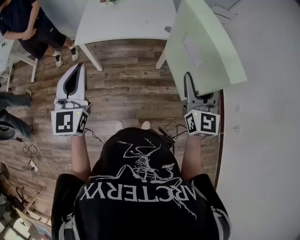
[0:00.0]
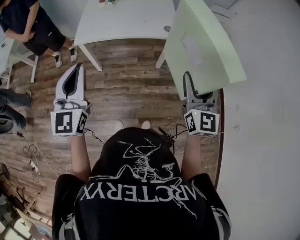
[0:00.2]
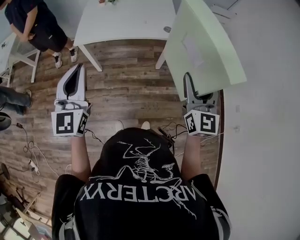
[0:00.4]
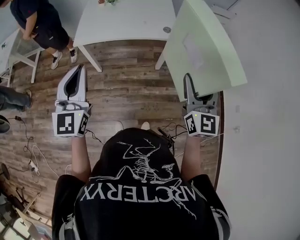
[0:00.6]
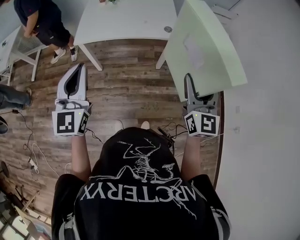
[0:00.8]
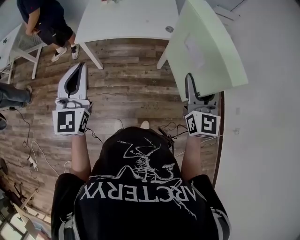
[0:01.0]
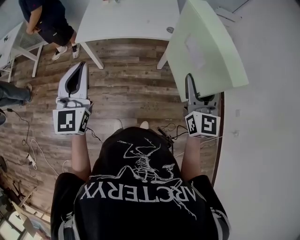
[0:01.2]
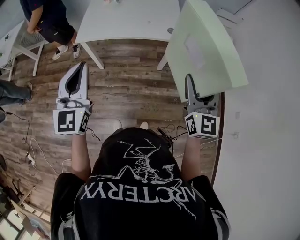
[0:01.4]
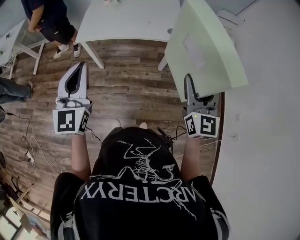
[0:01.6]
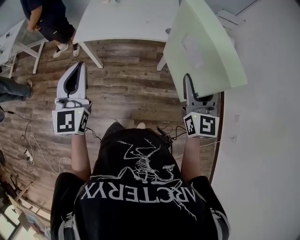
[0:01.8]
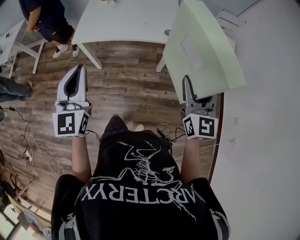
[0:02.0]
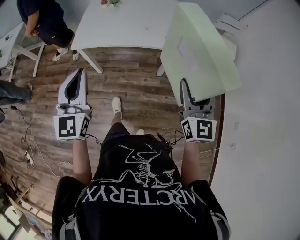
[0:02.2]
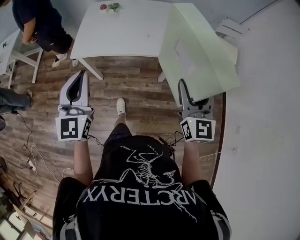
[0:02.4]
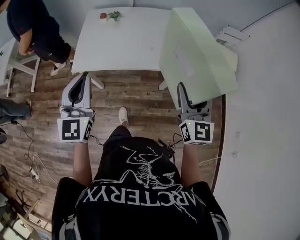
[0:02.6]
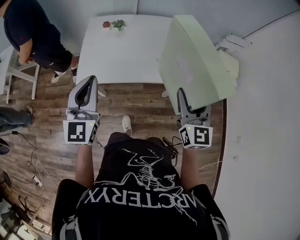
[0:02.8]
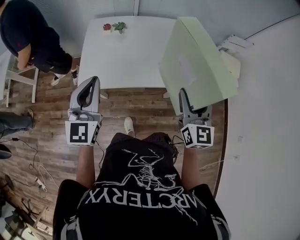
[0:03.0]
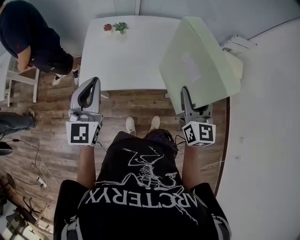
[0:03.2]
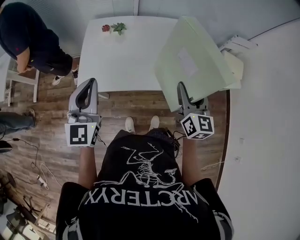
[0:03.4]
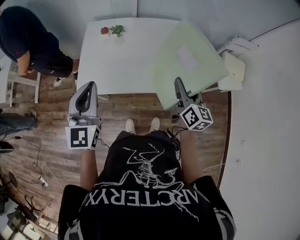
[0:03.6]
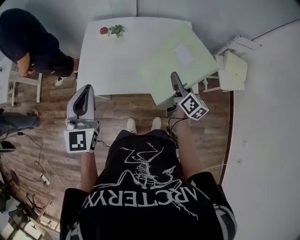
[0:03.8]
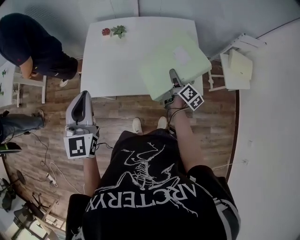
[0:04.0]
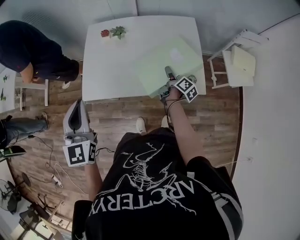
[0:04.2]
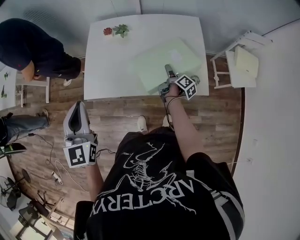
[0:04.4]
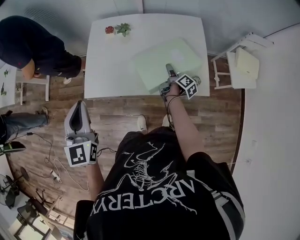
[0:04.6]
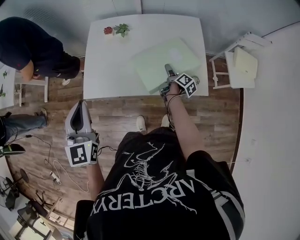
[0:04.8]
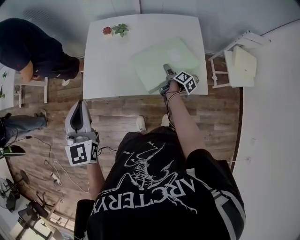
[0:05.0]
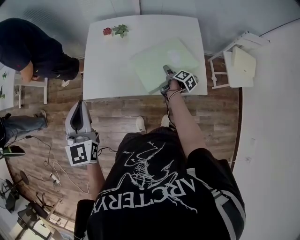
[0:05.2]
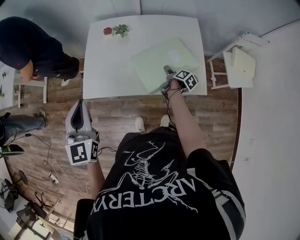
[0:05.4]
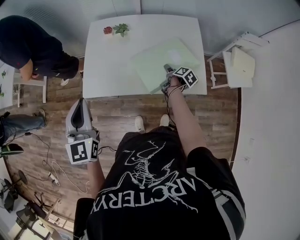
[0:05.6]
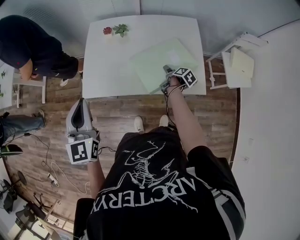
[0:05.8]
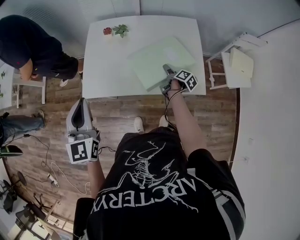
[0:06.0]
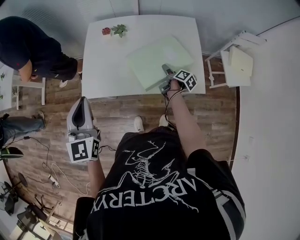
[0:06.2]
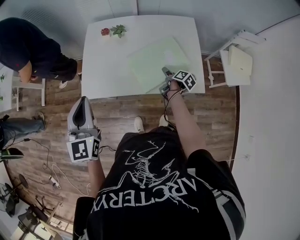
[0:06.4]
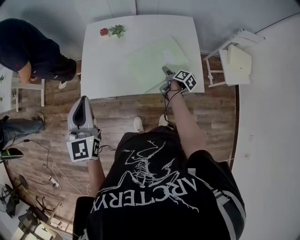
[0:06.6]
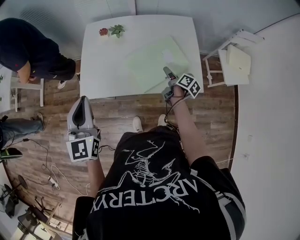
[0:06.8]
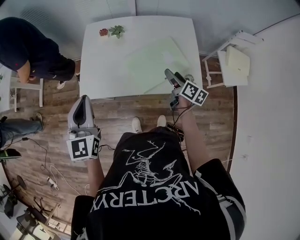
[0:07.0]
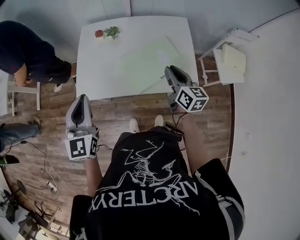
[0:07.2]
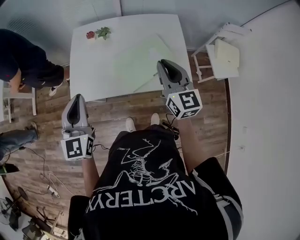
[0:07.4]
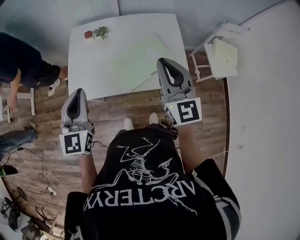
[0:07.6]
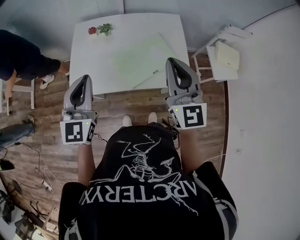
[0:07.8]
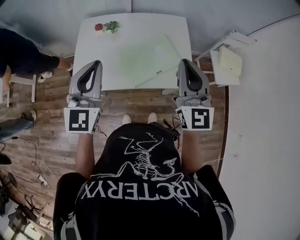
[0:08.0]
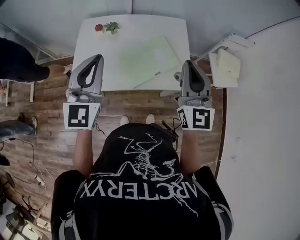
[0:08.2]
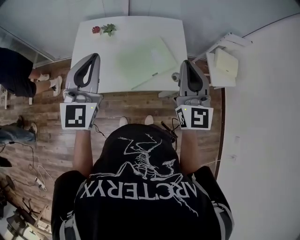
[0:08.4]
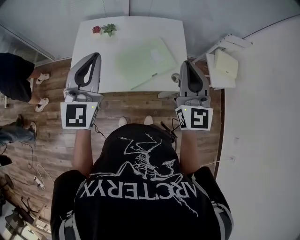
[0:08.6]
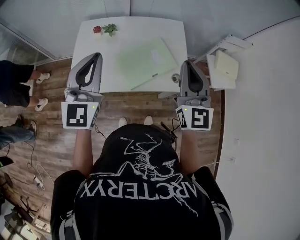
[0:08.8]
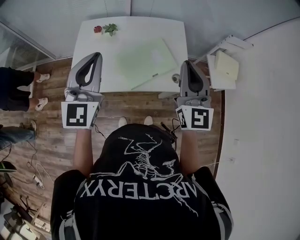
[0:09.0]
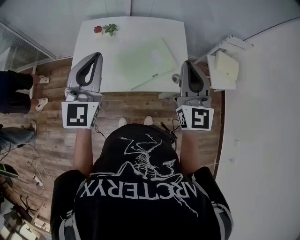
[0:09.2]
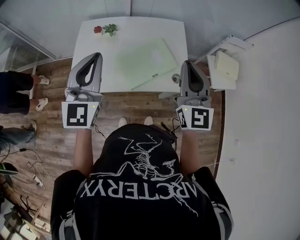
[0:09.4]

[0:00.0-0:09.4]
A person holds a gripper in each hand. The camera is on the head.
0:00.0 to 0:01.6: The right gripper ends up some 5 cm from where it was.
0:01.6 to 0:03.2: Both grippers move forward, roughly 30 cm.
0:03.2 to 0:04.8: The right gripper moves downward and forward, some 40 cm, and rolls clockwise, seen from behind, by approximately 70 degrees.
0:06.2 to 0:07.8: The right gripper shifts roughly 40 cm upward, rotates around the line of its fingers by approximately 80 degrees, counterclockwise from behind, and closes. Meanwhile the left gripper moves to the right, some 10 cm.
0:07.8 to 0:09.4: The left gripper moves upward, some 5 cm.

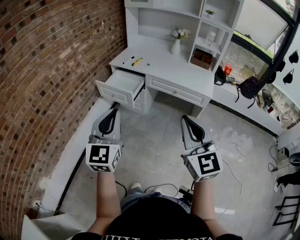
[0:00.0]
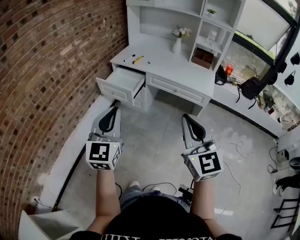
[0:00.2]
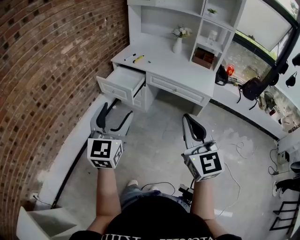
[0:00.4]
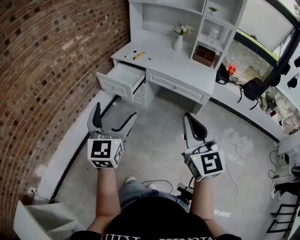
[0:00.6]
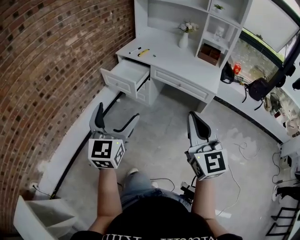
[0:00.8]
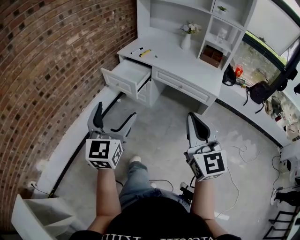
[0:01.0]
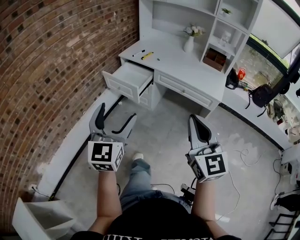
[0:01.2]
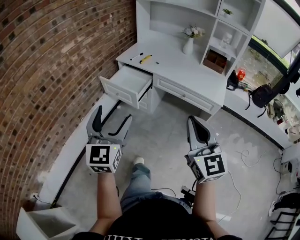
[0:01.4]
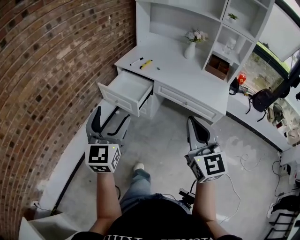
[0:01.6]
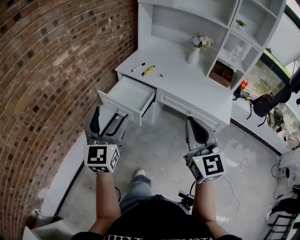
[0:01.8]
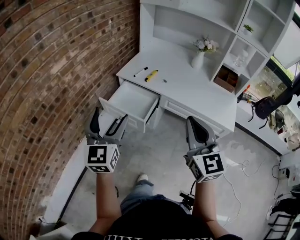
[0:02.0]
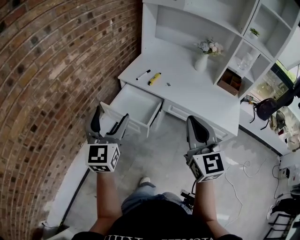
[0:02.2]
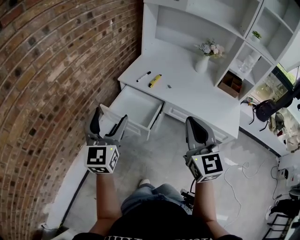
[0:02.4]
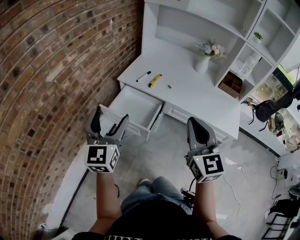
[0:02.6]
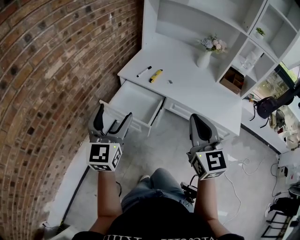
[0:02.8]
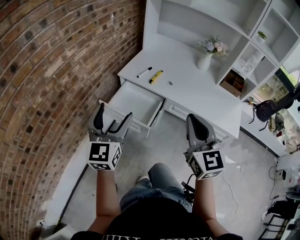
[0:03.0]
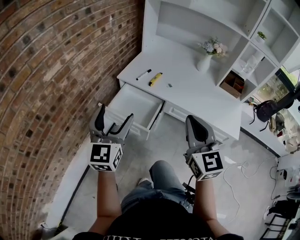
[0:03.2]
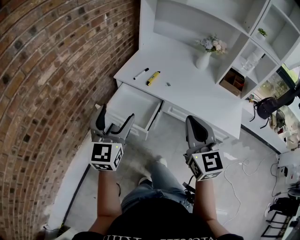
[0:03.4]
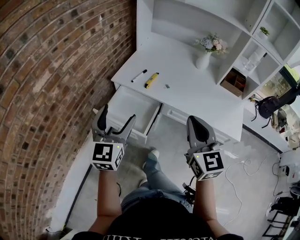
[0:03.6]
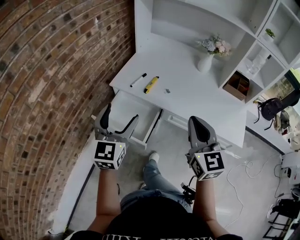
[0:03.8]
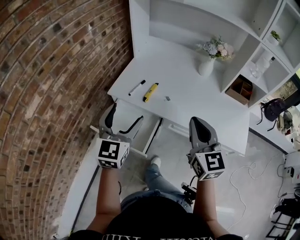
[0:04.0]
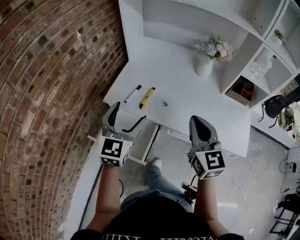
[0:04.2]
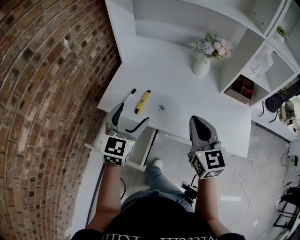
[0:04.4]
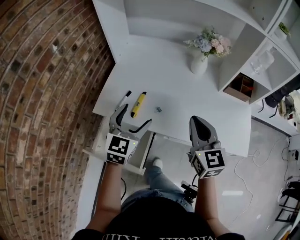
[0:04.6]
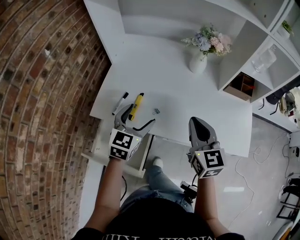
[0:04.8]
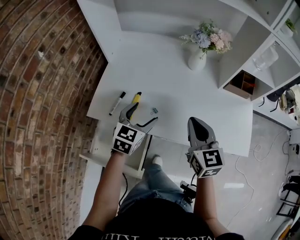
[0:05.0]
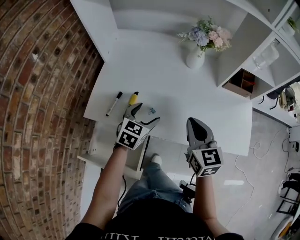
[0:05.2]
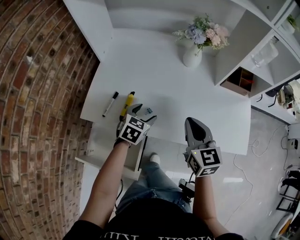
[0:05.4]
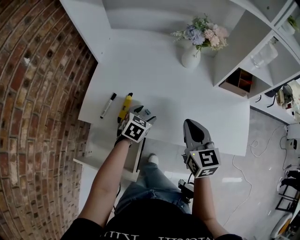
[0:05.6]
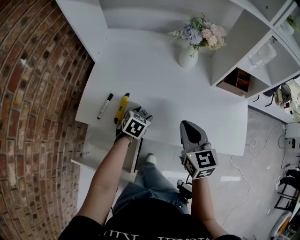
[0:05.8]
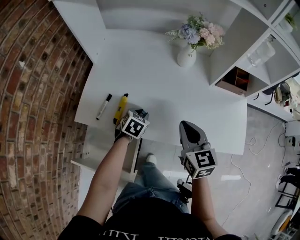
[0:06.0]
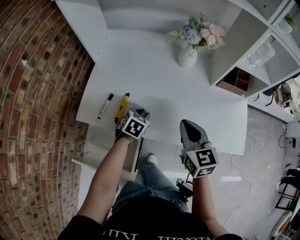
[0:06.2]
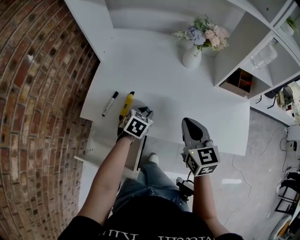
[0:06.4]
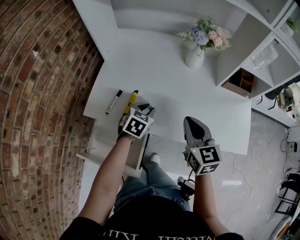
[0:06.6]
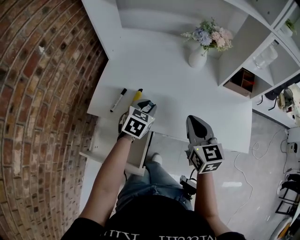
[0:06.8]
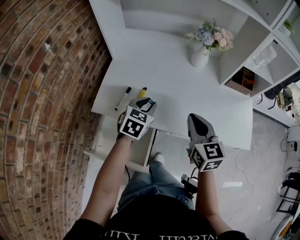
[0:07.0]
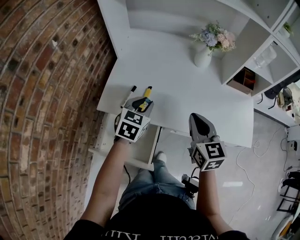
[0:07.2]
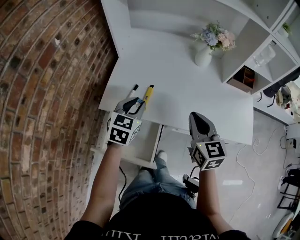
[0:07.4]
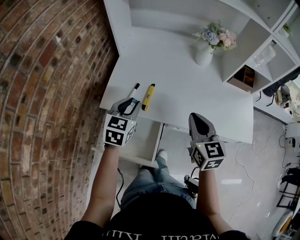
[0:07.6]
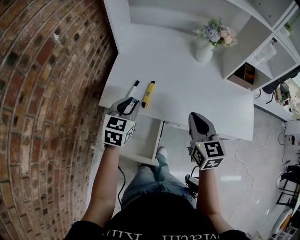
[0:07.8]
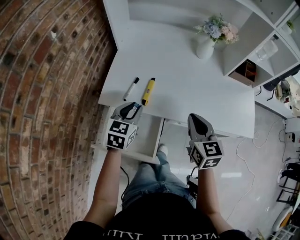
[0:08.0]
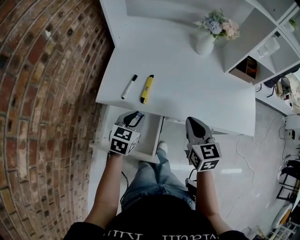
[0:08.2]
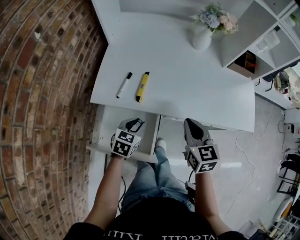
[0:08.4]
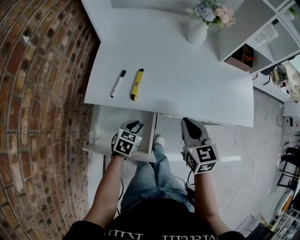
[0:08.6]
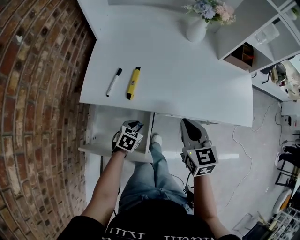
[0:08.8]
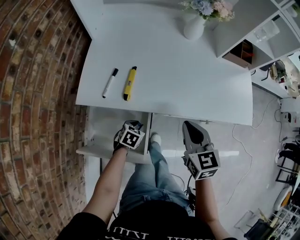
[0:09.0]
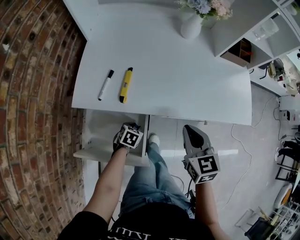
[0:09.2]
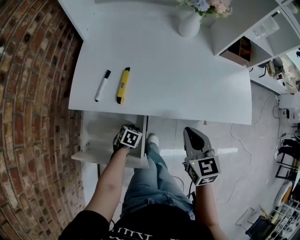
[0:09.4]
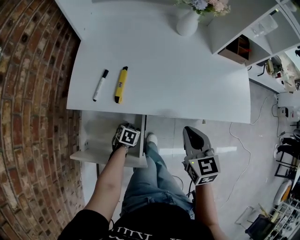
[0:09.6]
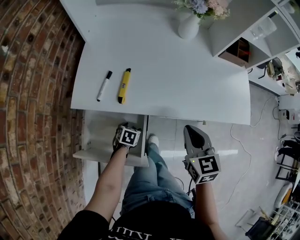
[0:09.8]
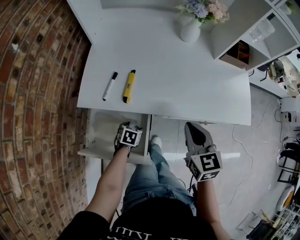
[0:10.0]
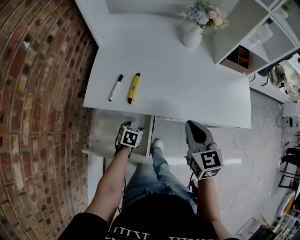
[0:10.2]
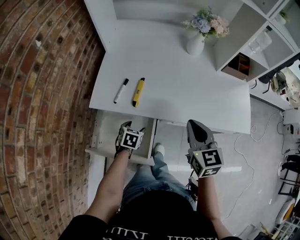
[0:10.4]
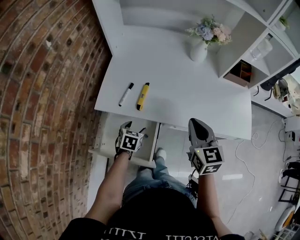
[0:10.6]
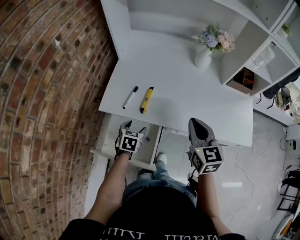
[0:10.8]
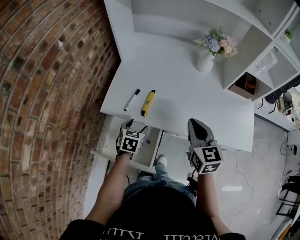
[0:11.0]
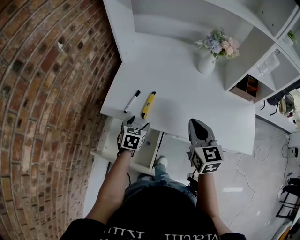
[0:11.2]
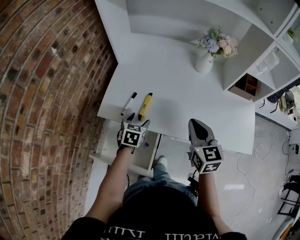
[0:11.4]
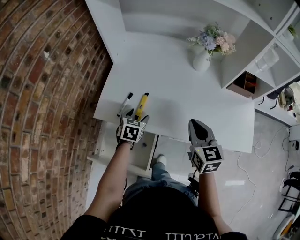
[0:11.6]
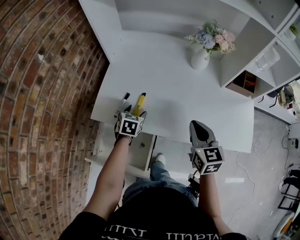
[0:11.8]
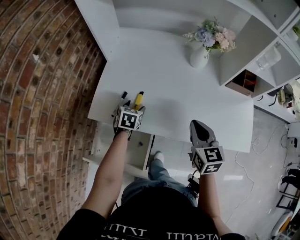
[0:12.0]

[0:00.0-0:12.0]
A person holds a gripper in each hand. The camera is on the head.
0:00.0 to 0:01.6: Both grippers move forward, about 15 cm. The left gripper opens its fingers.
0:01.6 to 0:03.0: The two grippers go roughly 25 cm forward.
0:03.0 to 0:04.4: The left gripper travels forward and to the right by some 35 cm, and swivels roughly 20 degrees. Meanwhile the right gripper heads forward, covering roughly 25 cm.
0:04.4 to 0:06.0: The right gripper heads downward and forward, covering approximately 15 cm; the left gripper heads downward and forward, covering roughly 30 cm, points its fingers about 40 degrees further downward, and closes its fingers.
0:06.0 to 0:07.6: The left gripper is displaced upward, to the left and backward by some 25 cm, and swivels about 30 degrees; the right gripper shifts roughly 10 cm to the left and backward.
0:07.6 to 0:09.0: The left gripper moves downward, roughly 30 cm, and changes its angle by about 40 degrees. Meanwhile the right gripper travels downward by about 10 cm.
0:09.0 to 0:10.4: Both grippers move upward, approximately 5 cm. The left gripper opens its fingers.
0:10.4 to 0:12.0: The left gripper heads forward and upward, covering roughly 20 cm; the right gripper shifts approximately 10 cm forward.

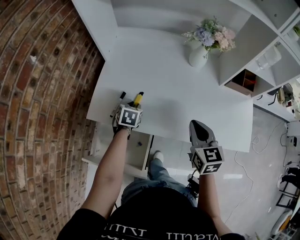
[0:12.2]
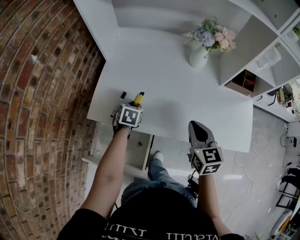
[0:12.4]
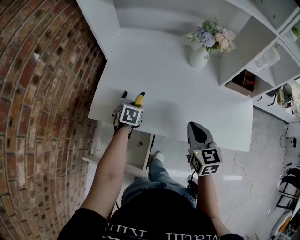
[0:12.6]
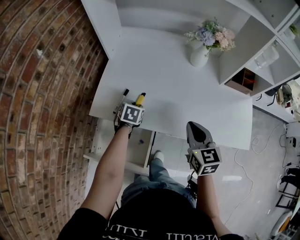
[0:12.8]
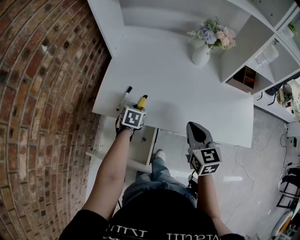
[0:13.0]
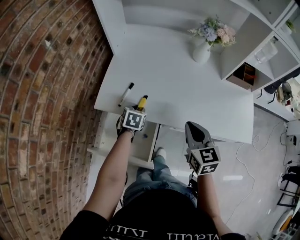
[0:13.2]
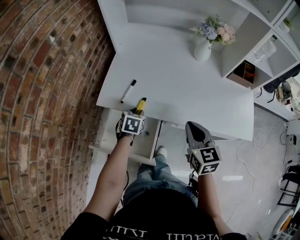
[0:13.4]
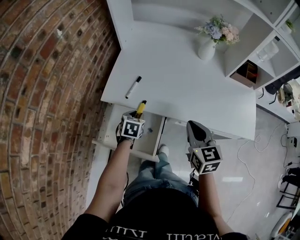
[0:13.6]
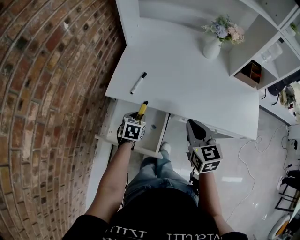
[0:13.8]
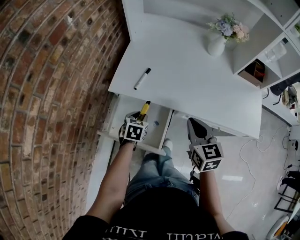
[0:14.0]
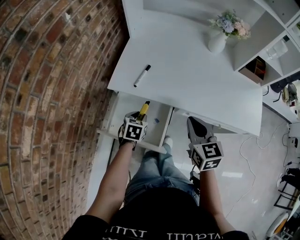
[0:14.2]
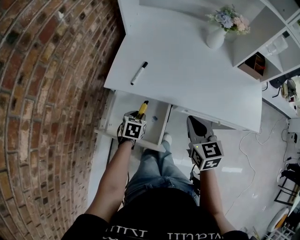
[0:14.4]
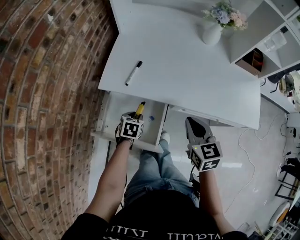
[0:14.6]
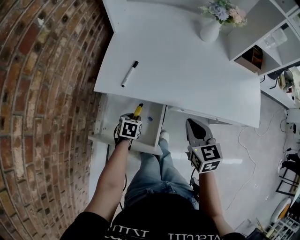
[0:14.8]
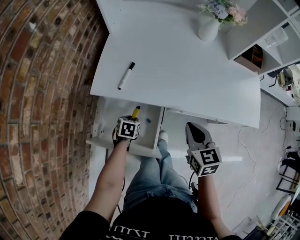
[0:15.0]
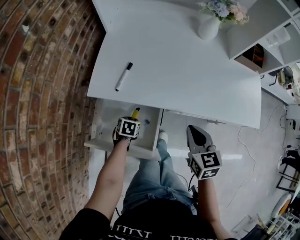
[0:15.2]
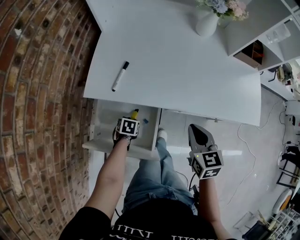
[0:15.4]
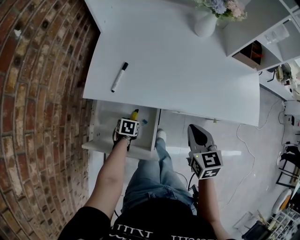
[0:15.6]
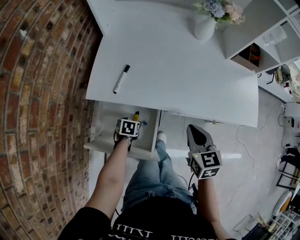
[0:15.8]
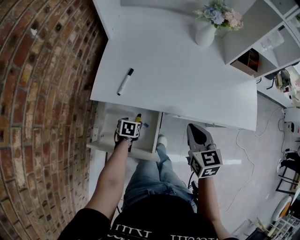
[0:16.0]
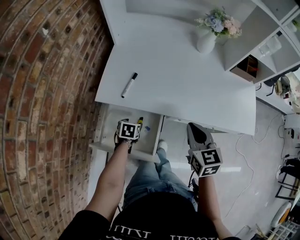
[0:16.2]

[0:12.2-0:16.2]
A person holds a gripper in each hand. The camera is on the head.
0:12.2 to 0:13.6: The left gripper travels backward by approximately 15 cm, while the right gripper goes roughly 15 cm backward and to the left.
0:13.6 to 0:14.8: The right gripper heads downward, covering about 5 cm. The left gripper shifts approximately 10 cm downward and backward.
0:14.8 to 0:16.2: The left gripper reaches some 10 cm downward, then returns, and opens.
